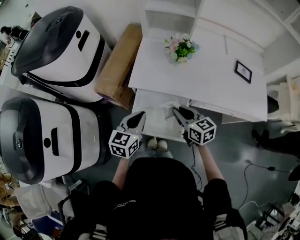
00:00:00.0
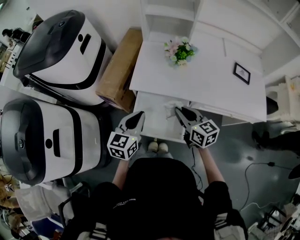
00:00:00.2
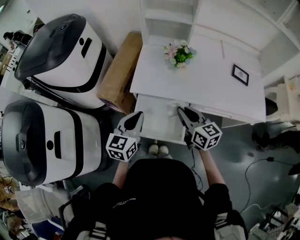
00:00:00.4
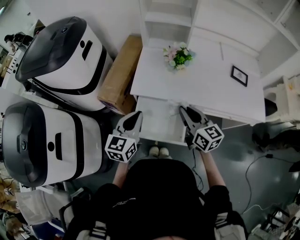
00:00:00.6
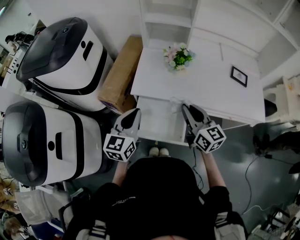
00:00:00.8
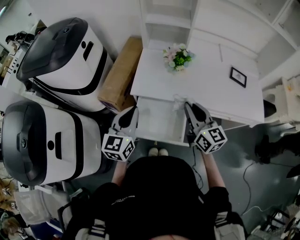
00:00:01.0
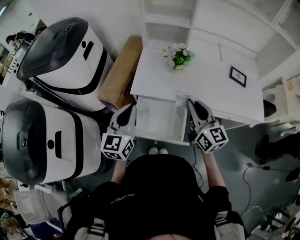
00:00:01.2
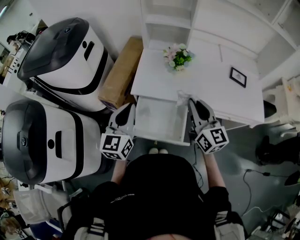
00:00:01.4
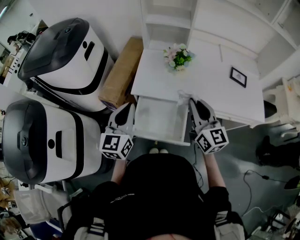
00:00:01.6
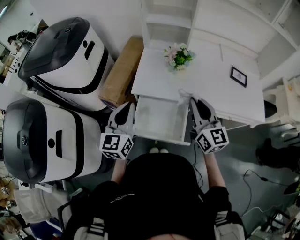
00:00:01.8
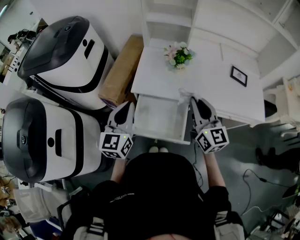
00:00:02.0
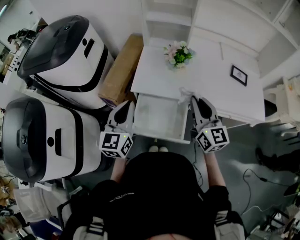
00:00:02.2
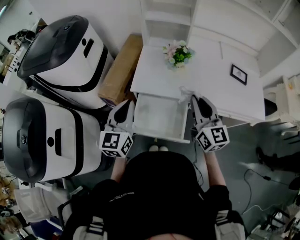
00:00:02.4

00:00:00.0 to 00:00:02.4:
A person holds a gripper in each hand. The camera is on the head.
00:00:00.0 to 00:00:01.2: Both grippers move upward, about 15 cm. The left gripper rotates approximately 20 degrees. The right gripper swivels about 30 degrees.
00:00:01.2 to 00:00:02.4: There are only small adjustments of the grippers.

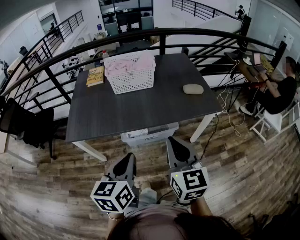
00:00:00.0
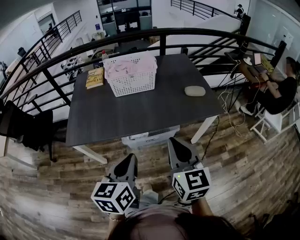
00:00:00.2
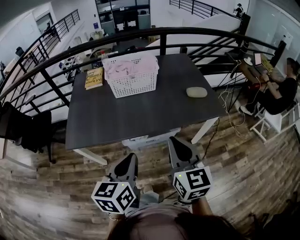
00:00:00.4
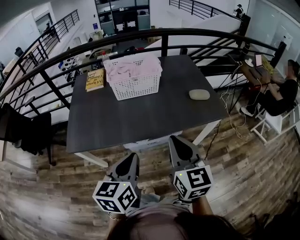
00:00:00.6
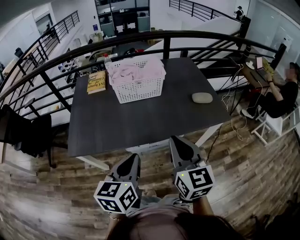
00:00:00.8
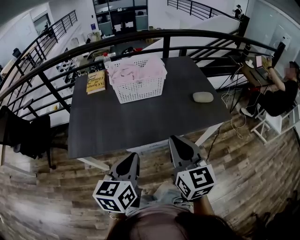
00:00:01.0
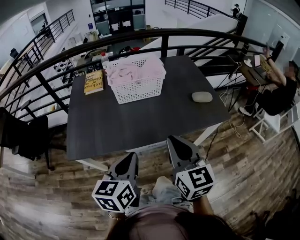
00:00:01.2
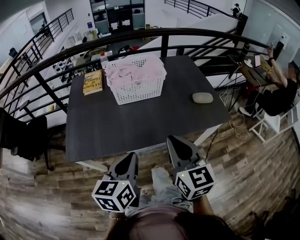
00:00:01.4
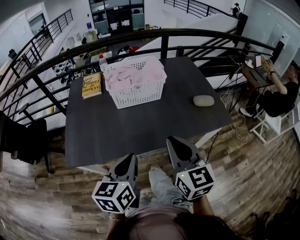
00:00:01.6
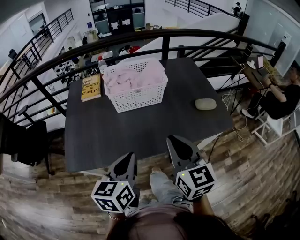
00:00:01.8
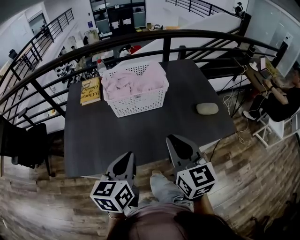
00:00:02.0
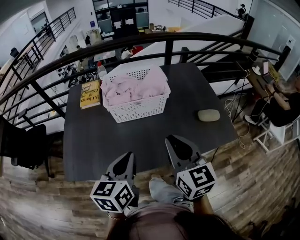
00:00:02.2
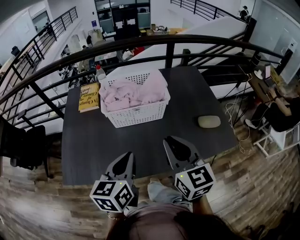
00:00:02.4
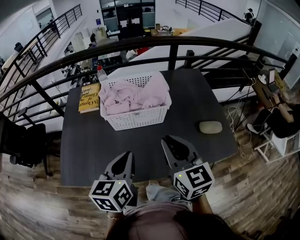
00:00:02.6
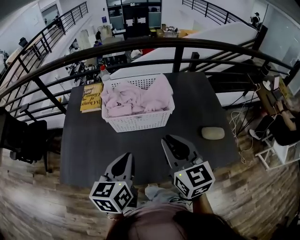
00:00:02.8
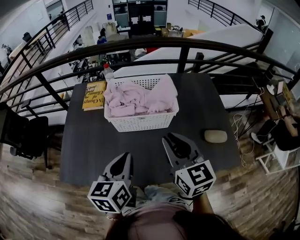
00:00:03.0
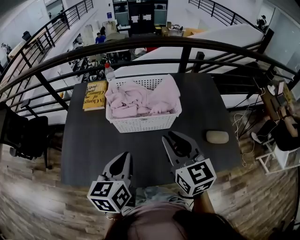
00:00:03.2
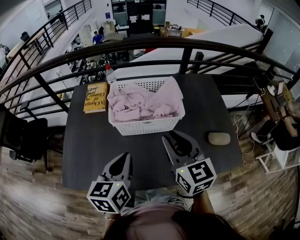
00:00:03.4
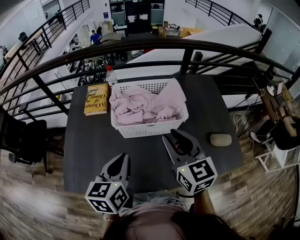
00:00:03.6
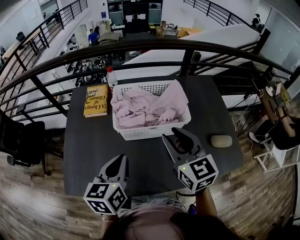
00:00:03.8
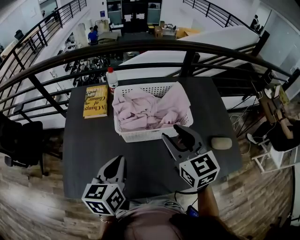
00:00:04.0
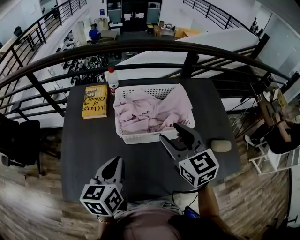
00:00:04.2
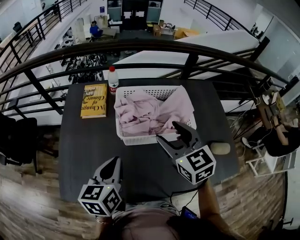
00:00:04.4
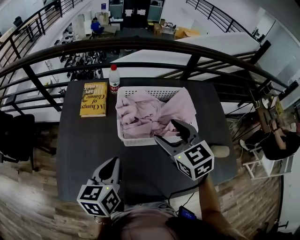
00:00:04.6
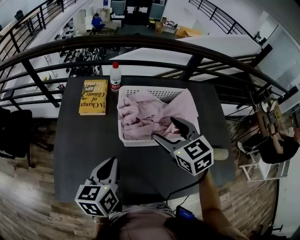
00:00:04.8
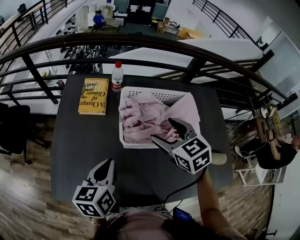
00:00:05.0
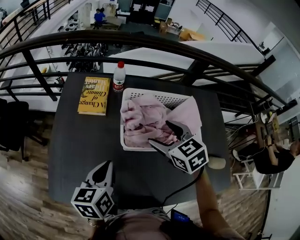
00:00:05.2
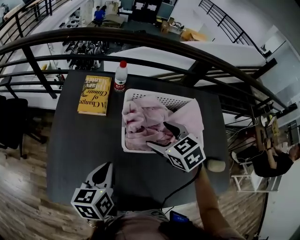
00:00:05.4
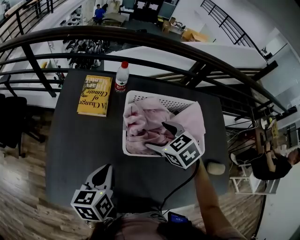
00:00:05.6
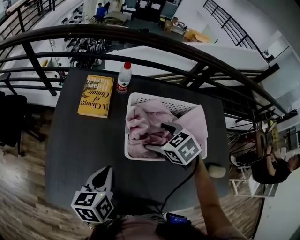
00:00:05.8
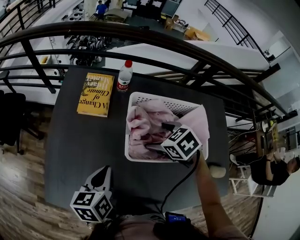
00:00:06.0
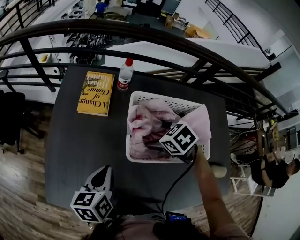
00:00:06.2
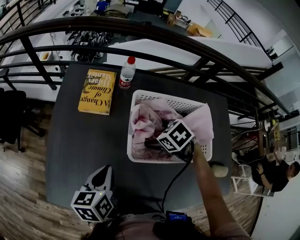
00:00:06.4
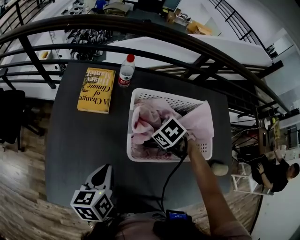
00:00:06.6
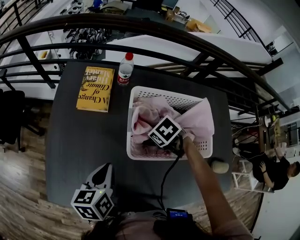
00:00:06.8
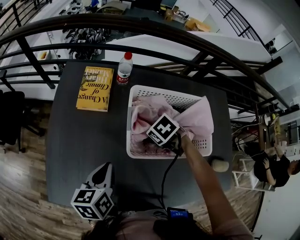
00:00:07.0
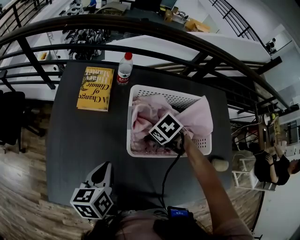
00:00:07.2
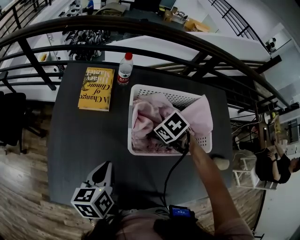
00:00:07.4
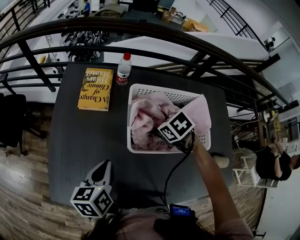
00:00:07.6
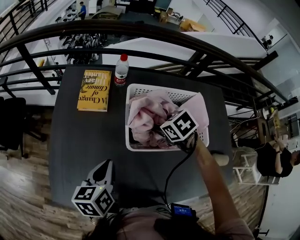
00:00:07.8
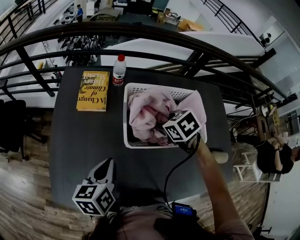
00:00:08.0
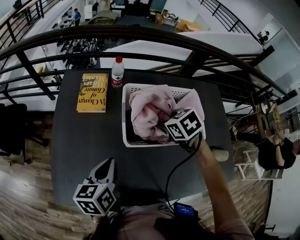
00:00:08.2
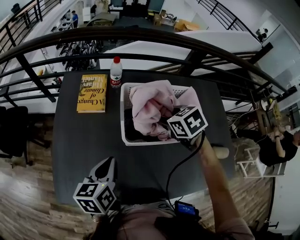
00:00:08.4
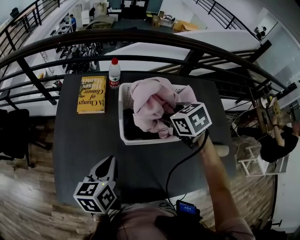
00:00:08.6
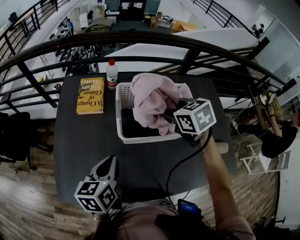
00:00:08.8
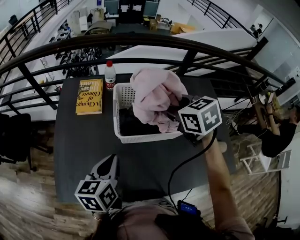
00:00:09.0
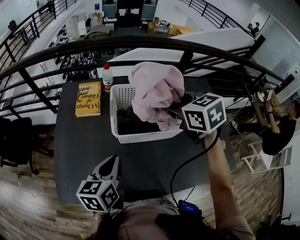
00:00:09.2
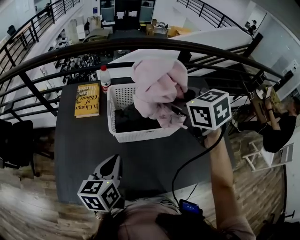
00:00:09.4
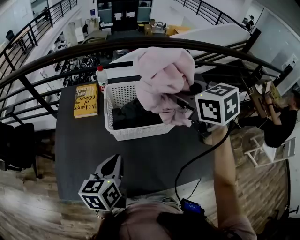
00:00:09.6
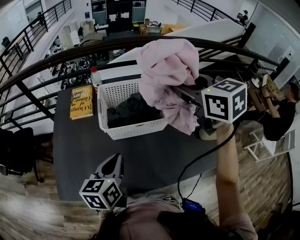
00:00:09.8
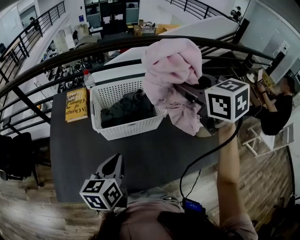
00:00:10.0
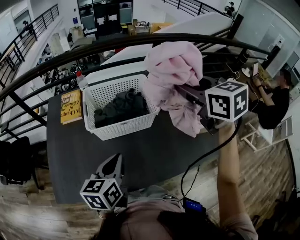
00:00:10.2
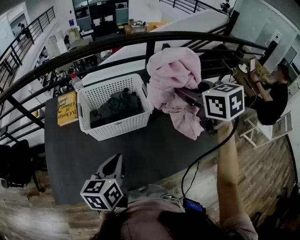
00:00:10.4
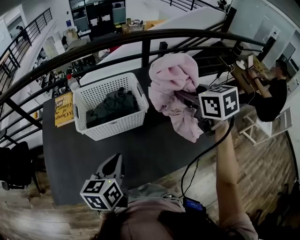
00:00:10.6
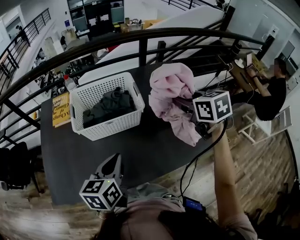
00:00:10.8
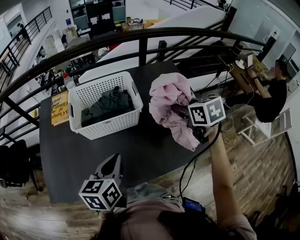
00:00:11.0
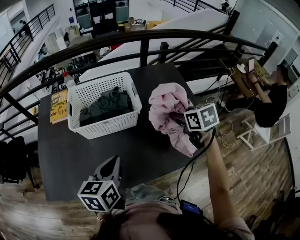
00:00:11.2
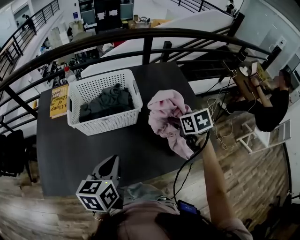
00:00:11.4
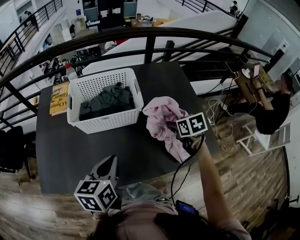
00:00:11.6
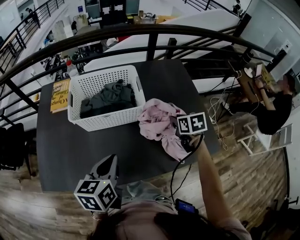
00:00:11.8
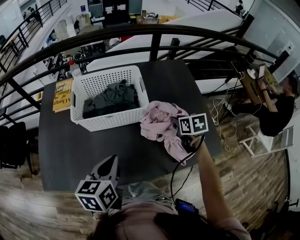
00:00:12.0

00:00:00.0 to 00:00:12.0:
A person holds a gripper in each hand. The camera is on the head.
00:00:00.0 to 00:00:01.6: The two grippers go about 20 cm forward and to the left.
00:00:01.6 to 00:00:03.0: The two grippers go roughly 20 cm forward.
00:00:03.0 to 00:00:04.4: The right gripper heads forward and to the left, covering some 15 cm, and opens; the left gripper shifts approximately 15 cm to the left and forward.
00:00:04.4 to 00:00:06.0: The right gripper shifts approximately 20 cm downward and forward, points its fingers roughly 40 degrees further downward, and opens its fingers. The left gripper moves downward and forward, about 10 cm.
00:00:06.0 to 00:00:07.6: The right gripper closes its fingers.
00:00:07.6 to 00:00:09.0: The right gripper moves upward, about 20 cm, and changes its angle by some 30 degrees. Meanwhile the left gripper goes approximately 10 cm upward and to the right.
00:00:09.0 to 00:00:10.4: The left gripper moves to the right and backward, roughly 20 cm. The right gripper heads to the right, backward and upward, covering about 30 cm, and swivels some 20 degrees.
00:00:10.4 to 00:00:12.0: The right gripper is displaced downward by approximately 25 cm, and rotates approximately 30 degrees.

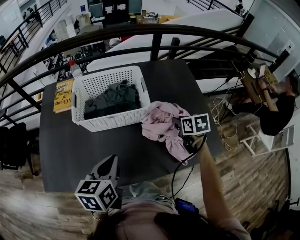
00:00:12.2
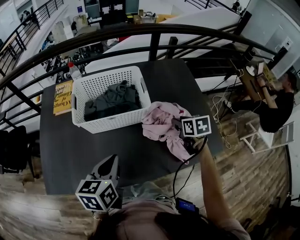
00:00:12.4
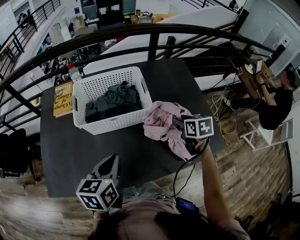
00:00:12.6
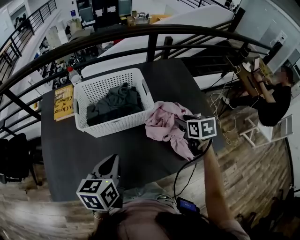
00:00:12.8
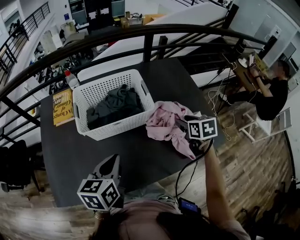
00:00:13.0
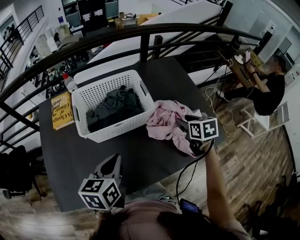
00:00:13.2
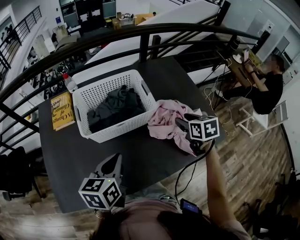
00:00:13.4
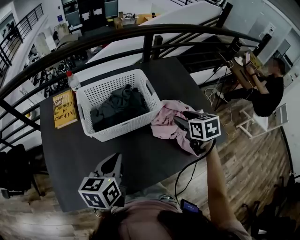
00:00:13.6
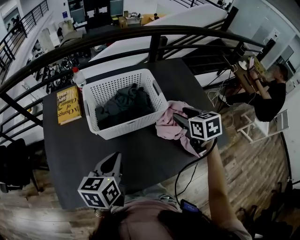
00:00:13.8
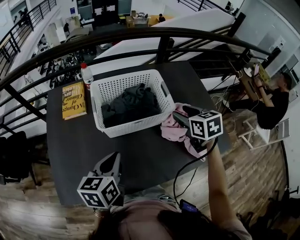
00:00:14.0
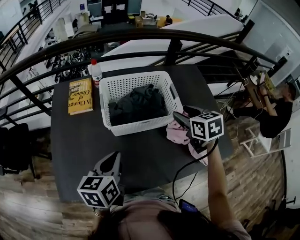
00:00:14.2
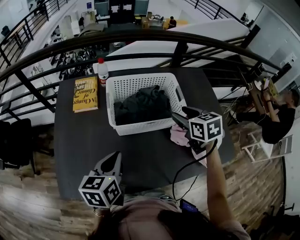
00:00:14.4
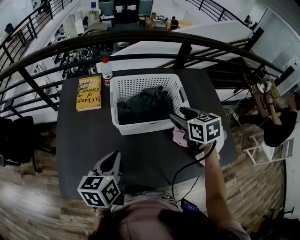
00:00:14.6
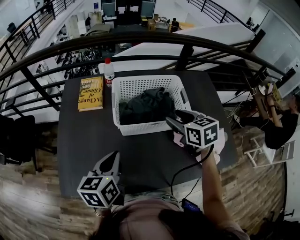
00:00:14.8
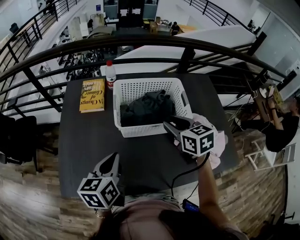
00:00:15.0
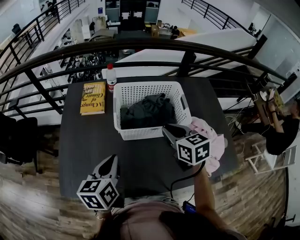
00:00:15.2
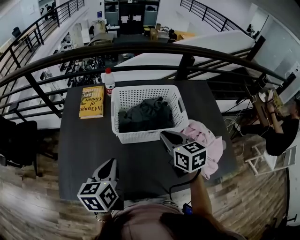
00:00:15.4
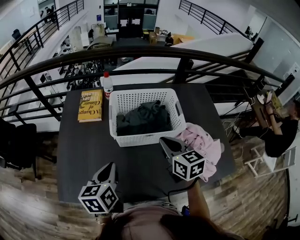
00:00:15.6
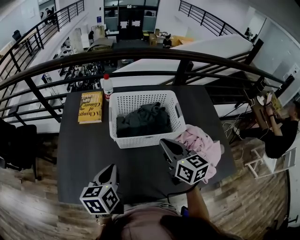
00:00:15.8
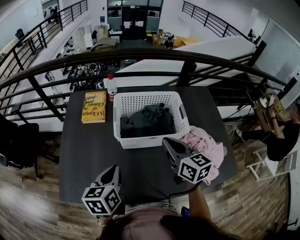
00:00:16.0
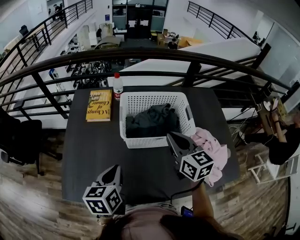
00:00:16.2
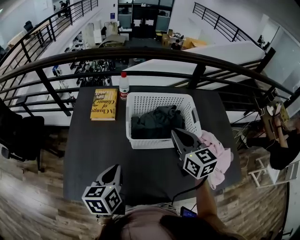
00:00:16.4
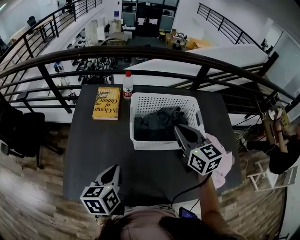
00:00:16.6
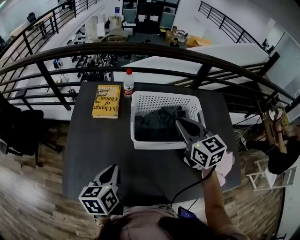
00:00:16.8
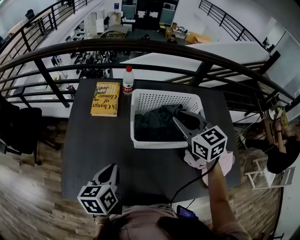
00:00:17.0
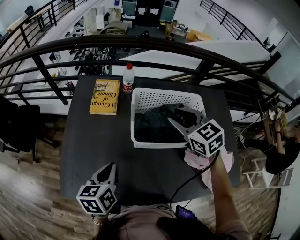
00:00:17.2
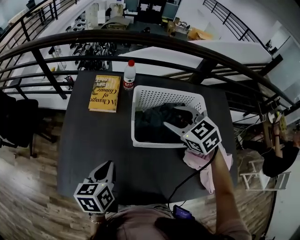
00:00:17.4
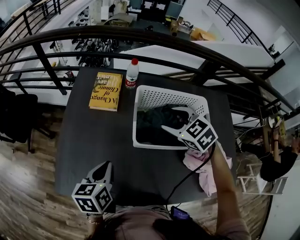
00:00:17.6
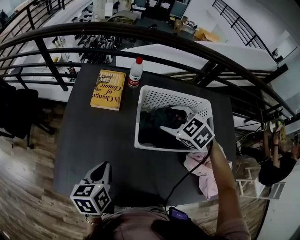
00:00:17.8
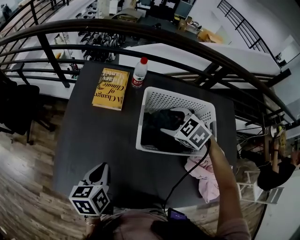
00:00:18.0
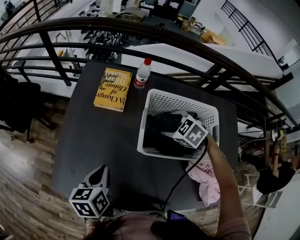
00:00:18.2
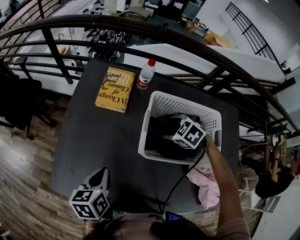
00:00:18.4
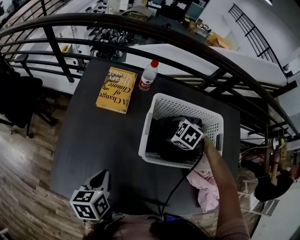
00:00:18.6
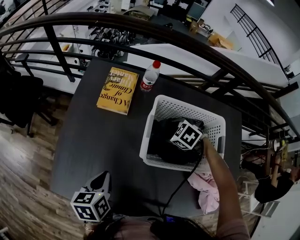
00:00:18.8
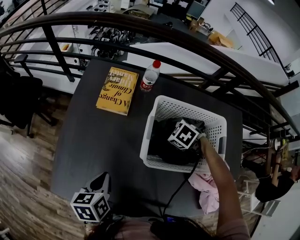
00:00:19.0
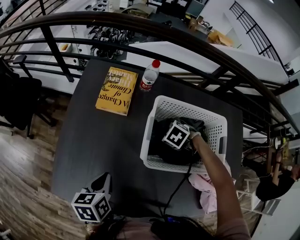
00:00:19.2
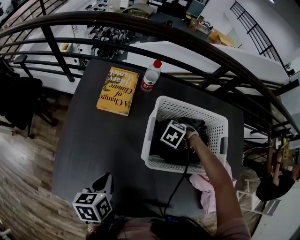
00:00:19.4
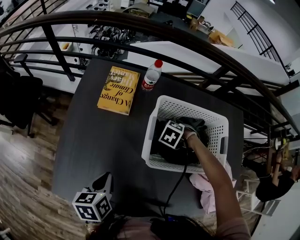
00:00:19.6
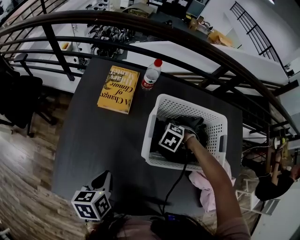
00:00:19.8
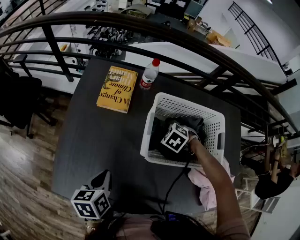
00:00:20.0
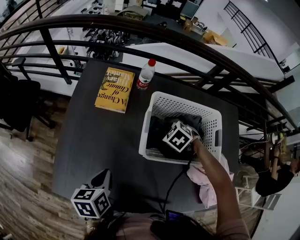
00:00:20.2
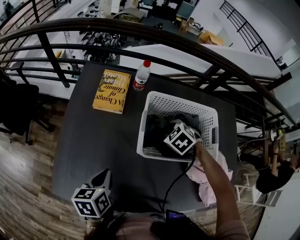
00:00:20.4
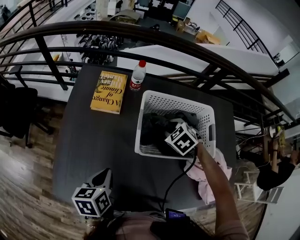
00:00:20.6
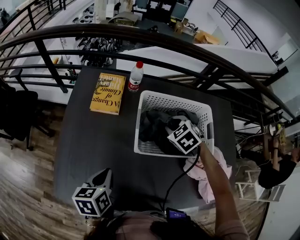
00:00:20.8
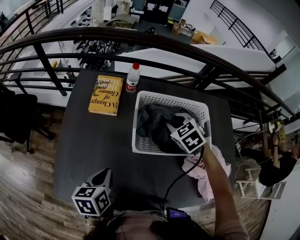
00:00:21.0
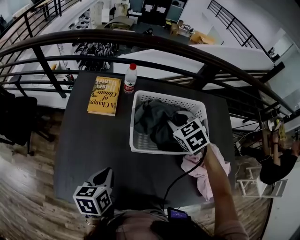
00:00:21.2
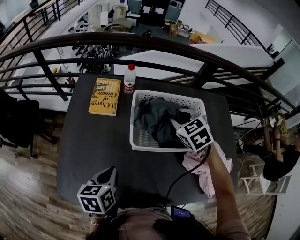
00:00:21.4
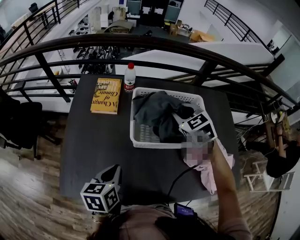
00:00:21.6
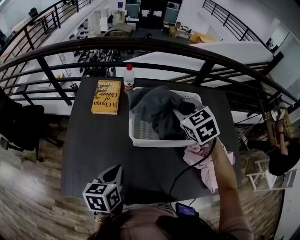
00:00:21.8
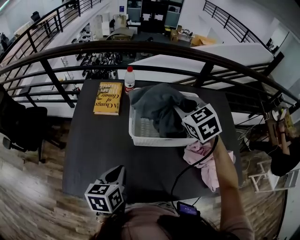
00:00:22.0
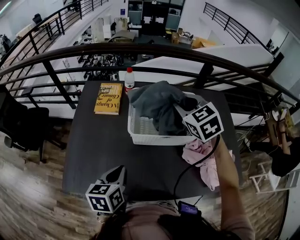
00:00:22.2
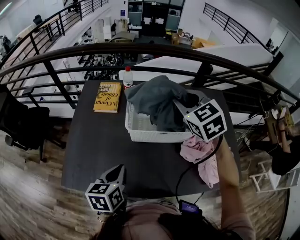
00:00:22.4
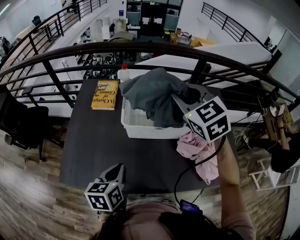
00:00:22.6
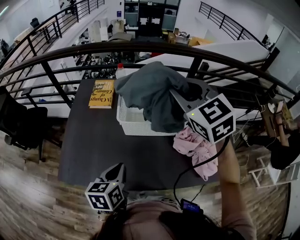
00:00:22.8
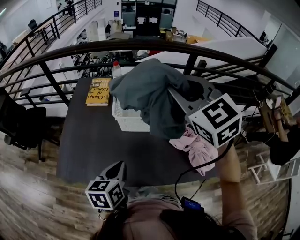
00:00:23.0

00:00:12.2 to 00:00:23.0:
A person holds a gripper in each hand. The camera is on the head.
00:00:12.2 to 00:00:13.8: The left gripper travels to the left by about 10 cm; the right gripper moves to the left and upward, some 15 cm, and opens.
00:00:13.8 to 00:00:15.2: The right gripper travels to the left by some 15 cm, and closes up; the left gripper shifts about 10 cm to the left.
00:00:15.2 to 00:00:16.8: The left gripper is displaced to the left by about 5 cm, while the right gripper moves forward and upward, some 10 cm.
00:00:16.8 to 00:00:18.4: The left gripper goes about 5 cm downward; the right gripper is displaced downward and forward by some 25 cm, tips its fingers downward by approximately 50 degrees, and opens up.
00:00:18.4 to 00:00:20.0: The right gripper travels downward by about 5 cm, and closes up.
00:00:20.0 to 00:00:21.4: The right gripper moves upward, approximately 20 cm, and tilts its fingers roughly 30 degrees upward; the left gripper changes place by roughly 10 cm.
00:00:21.4 to 00:00:23.0: The right gripper heads upward and backward, covering roughly 30 cm, and swivels roughly 30 degrees; the left gripper heads backward, to the right and upward, covering about 20 cm.
